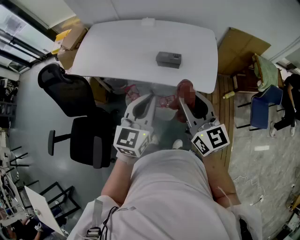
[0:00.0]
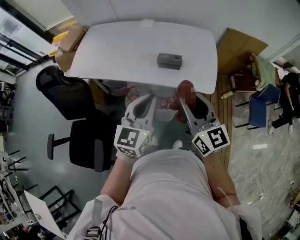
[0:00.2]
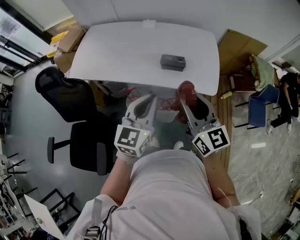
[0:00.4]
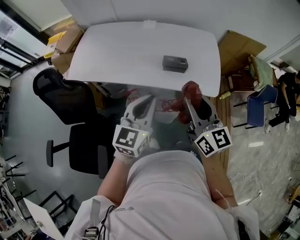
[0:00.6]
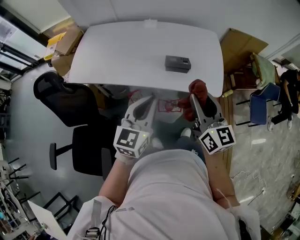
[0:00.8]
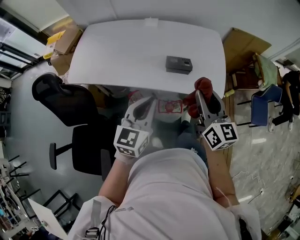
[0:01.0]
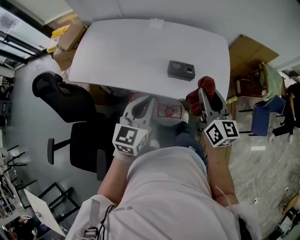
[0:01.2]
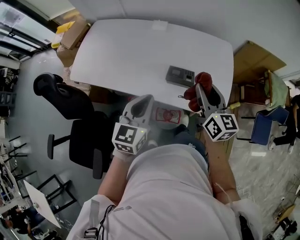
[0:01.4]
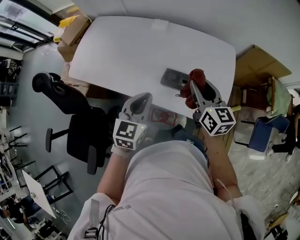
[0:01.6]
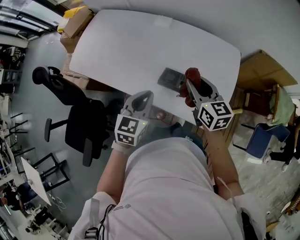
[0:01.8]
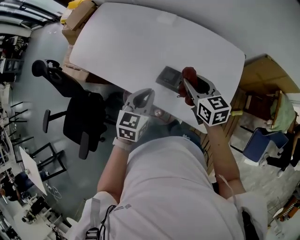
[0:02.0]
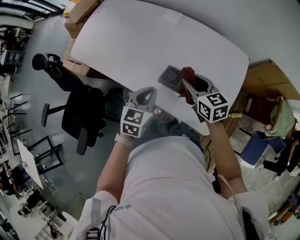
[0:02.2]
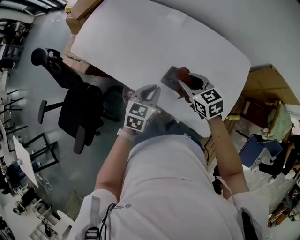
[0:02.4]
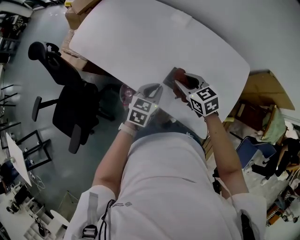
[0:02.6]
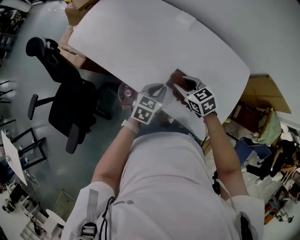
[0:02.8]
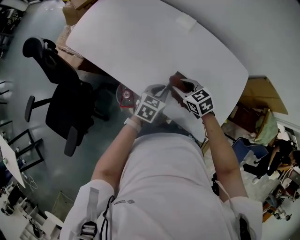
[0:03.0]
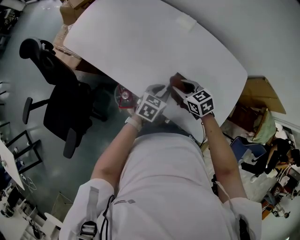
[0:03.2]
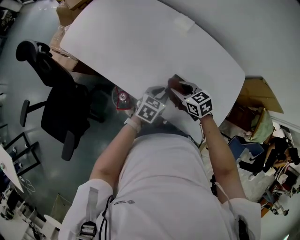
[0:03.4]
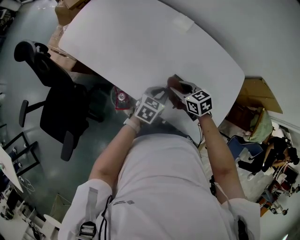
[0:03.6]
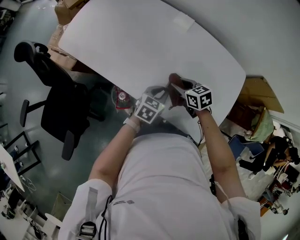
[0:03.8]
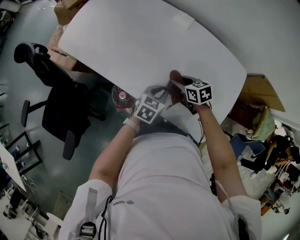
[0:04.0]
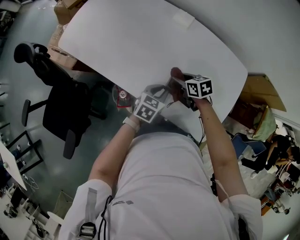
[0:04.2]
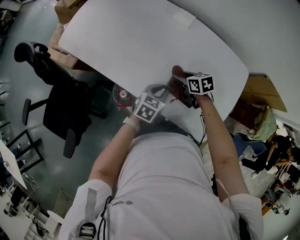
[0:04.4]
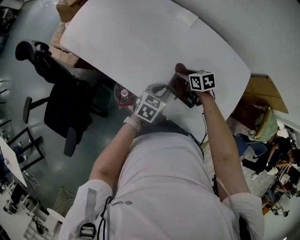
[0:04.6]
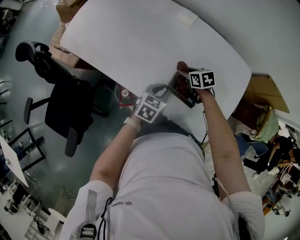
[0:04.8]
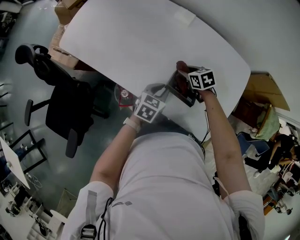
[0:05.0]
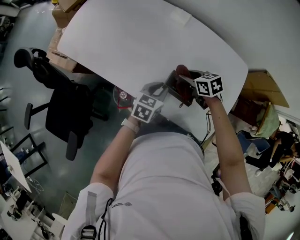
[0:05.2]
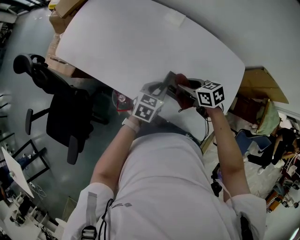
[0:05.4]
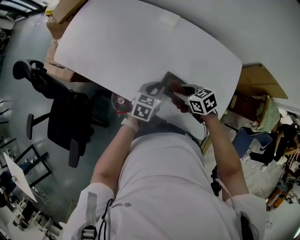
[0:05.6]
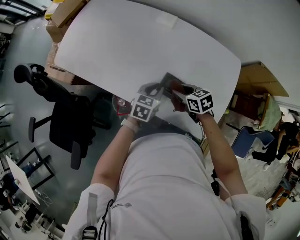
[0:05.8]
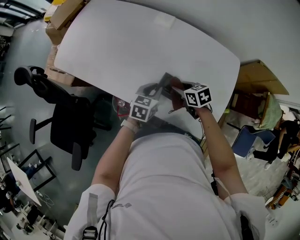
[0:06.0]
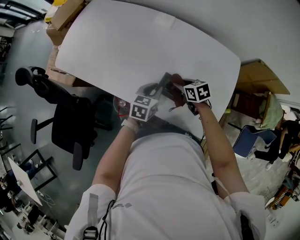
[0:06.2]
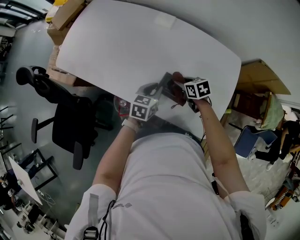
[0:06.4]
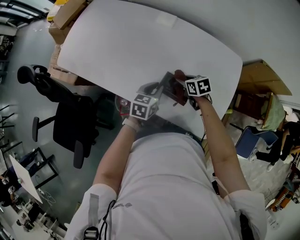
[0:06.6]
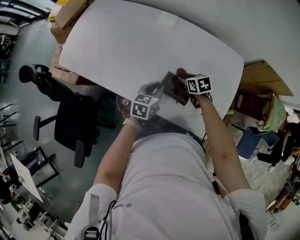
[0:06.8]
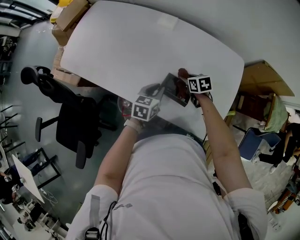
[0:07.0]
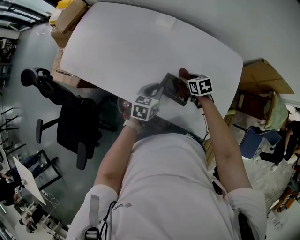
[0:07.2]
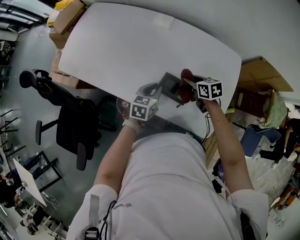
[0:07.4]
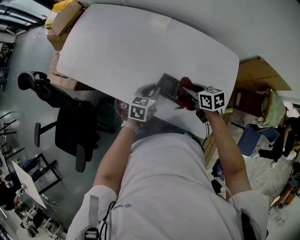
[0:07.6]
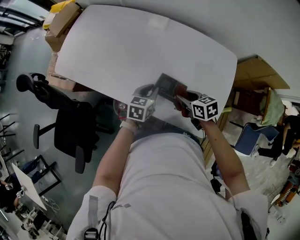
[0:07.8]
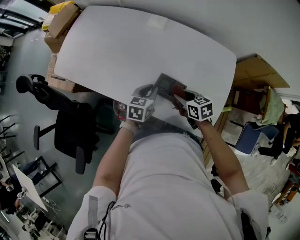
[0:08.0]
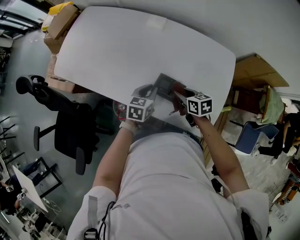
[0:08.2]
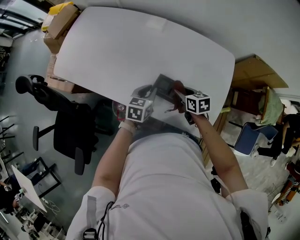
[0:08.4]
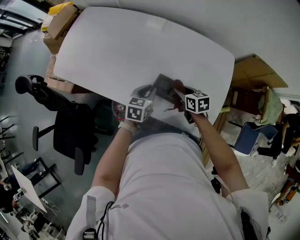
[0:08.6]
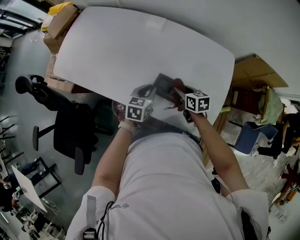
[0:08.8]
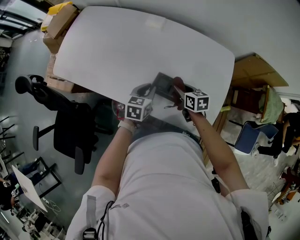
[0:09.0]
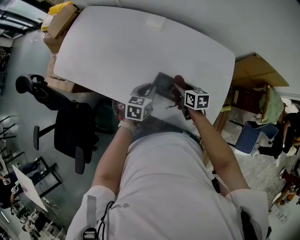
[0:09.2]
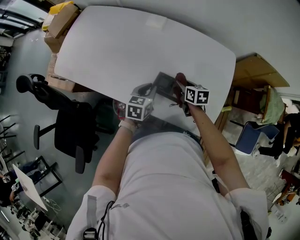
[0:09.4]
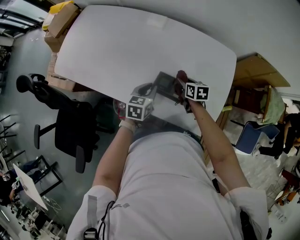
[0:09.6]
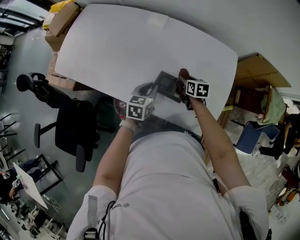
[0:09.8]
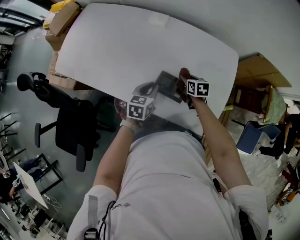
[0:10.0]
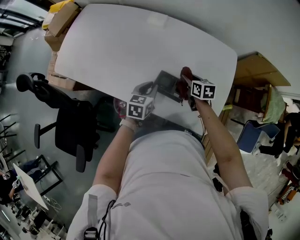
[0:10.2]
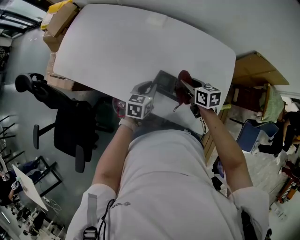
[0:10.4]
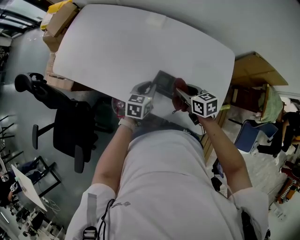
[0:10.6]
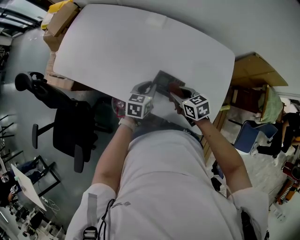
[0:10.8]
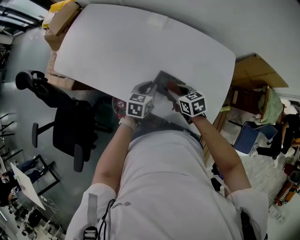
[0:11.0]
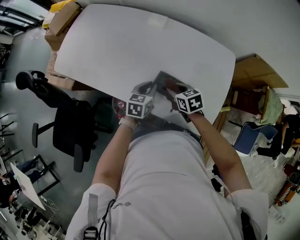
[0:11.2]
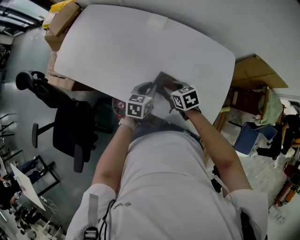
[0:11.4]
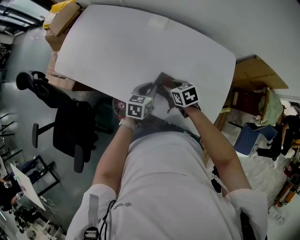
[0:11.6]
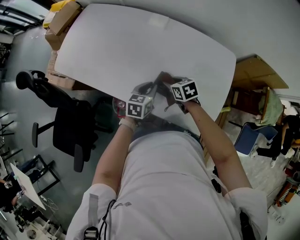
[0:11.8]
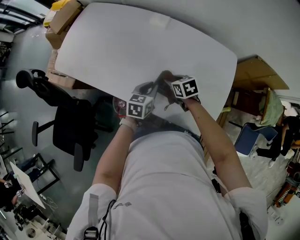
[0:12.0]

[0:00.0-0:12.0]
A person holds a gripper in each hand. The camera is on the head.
0:00.0 to 0:01.6: The right gripper heads forward, covering about 25 cm. The left gripper heads forward and downward, covering roughly 20 cm.
0:01.6 to 0:03.0: The left gripper is displaced downward by about 20 cm, and swivels some 20 degrees. Meanwhile the right gripper is displaced downward and to the left by about 20 cm, and tilts its fingers roughly 30 degrees downward.
0:03.0 to 0:04.4: The right gripper shifts about 10 cm downward and forward, and turns by approximately 30 degrees.
0:04.4 to 0:06.0: The right gripper travels backward by about 5 cm.
0:06.0 to 0:07.6: The right gripper ends up about 5 cm from where it was.
0:07.6 to 0:09.0: The grippers stay close to where they were, moving slightly.
0:10.4 to 0:12.0: The right gripper goes about 10 cm to the left.

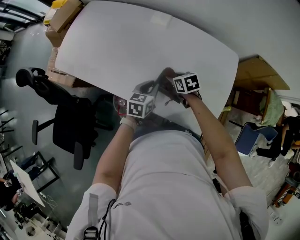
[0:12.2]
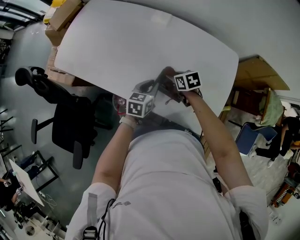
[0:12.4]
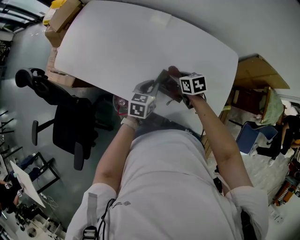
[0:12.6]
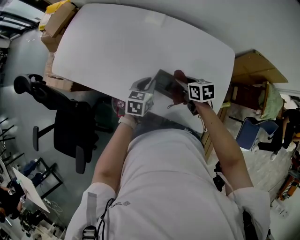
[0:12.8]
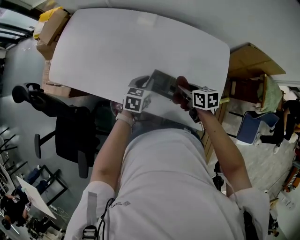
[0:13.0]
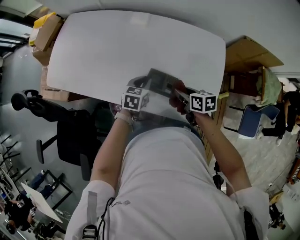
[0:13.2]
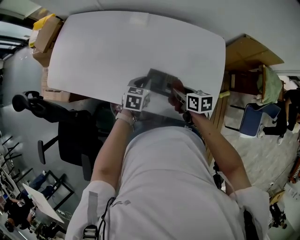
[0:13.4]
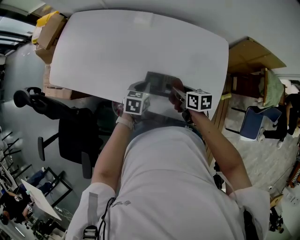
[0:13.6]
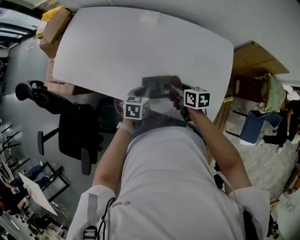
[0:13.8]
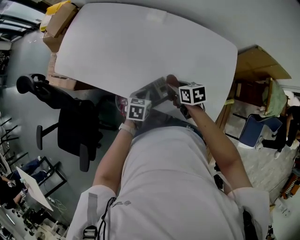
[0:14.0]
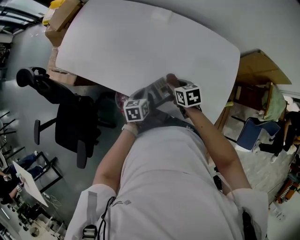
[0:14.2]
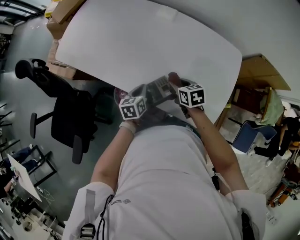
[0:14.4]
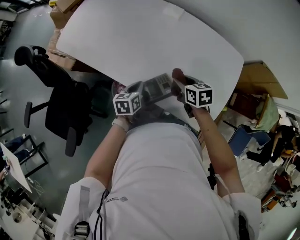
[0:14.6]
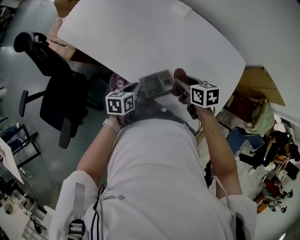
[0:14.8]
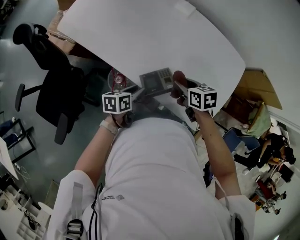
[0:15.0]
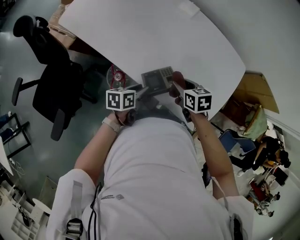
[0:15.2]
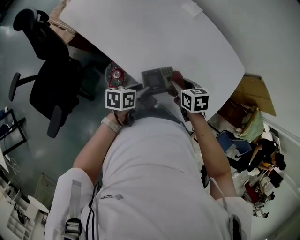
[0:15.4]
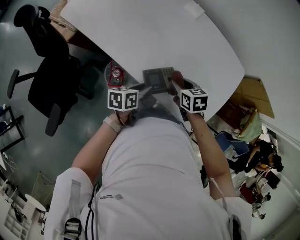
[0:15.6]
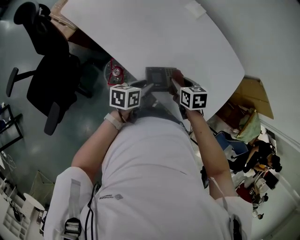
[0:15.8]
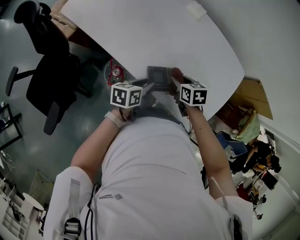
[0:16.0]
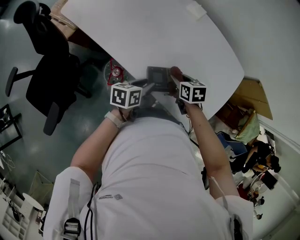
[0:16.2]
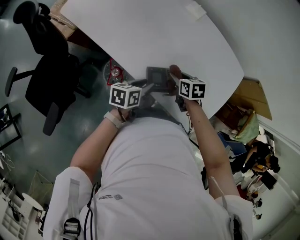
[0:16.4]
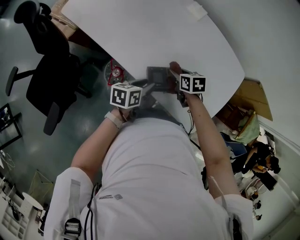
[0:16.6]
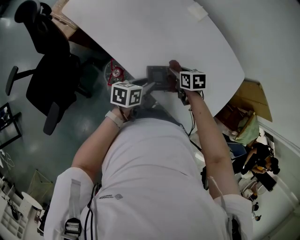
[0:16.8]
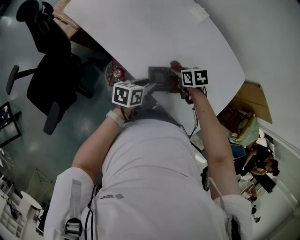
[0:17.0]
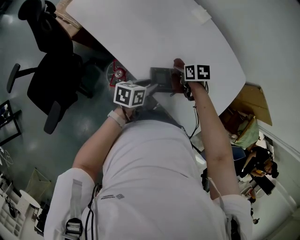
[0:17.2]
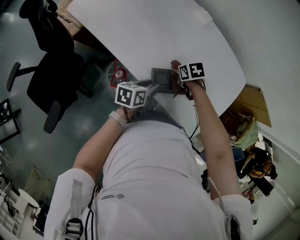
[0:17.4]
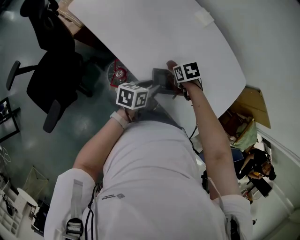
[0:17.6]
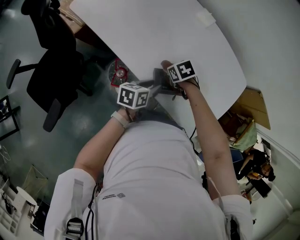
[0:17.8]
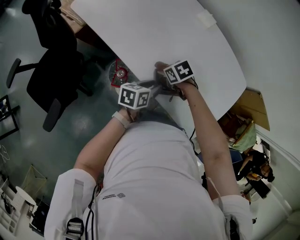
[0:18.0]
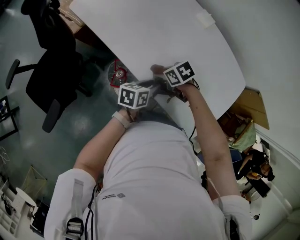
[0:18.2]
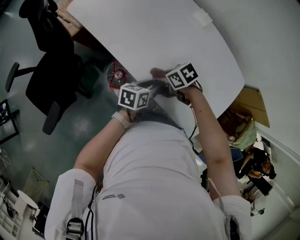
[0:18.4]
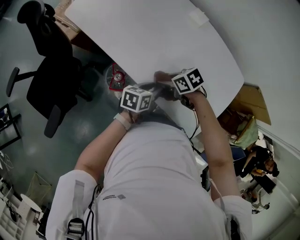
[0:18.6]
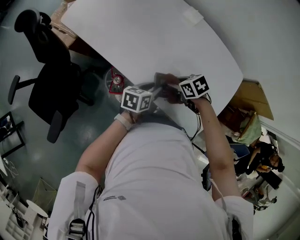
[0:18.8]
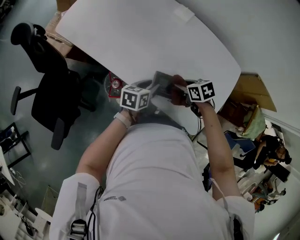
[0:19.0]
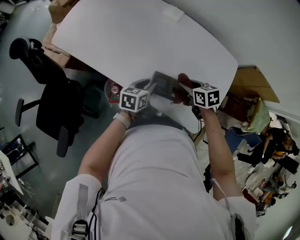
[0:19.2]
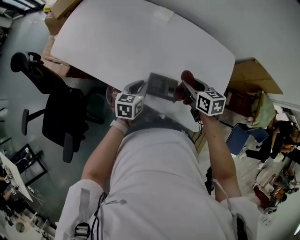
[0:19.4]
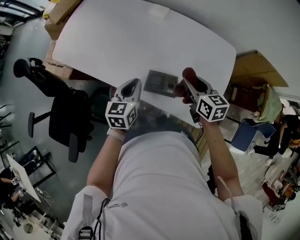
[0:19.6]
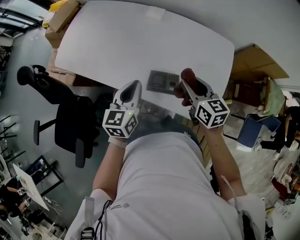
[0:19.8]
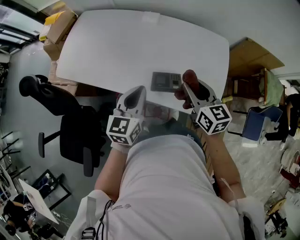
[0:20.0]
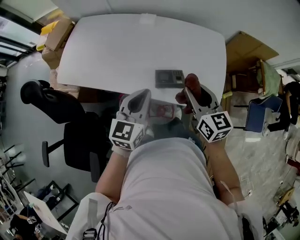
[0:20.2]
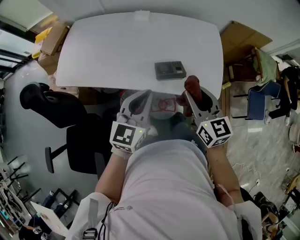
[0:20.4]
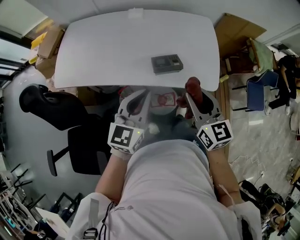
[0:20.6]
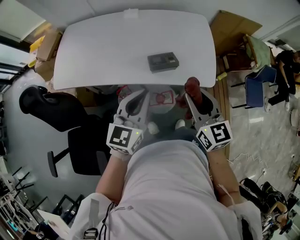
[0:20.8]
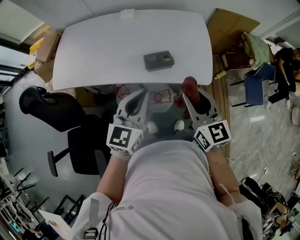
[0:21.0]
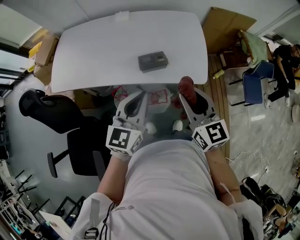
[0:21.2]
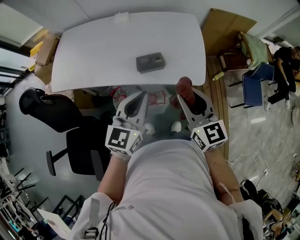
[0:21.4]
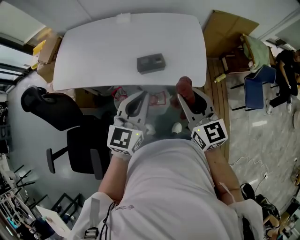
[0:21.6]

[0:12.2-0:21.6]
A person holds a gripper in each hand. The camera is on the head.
0:12.2 to 0:13.8: The right gripper goes some 5 cm backward, and turns by roughly 30 degrees.
0:13.8 to 0:15.4: The right gripper moves to the left, approximately 5 cm, and changes its angle by about 30 degrees. The left gripper is displaced backward by some 10 cm, changes its angle by approximately 40 degrees, and opens its fingers.
0:15.4 to 0:17.0: The right gripper heads forward and downward, covering some 10 cm.
0:17.0 to 0:18.4: The right gripper changes place by approximately 10 cm, and rotates some 30 degrees.
0:18.4 to 0:20.0: The two grippers go approximately 20 cm upward. The left gripper changes its angle by some 40 degrees, and closes up, while the right gripper tilts its fingers about 40 degrees upward.
0:20.0 to 0:21.6: The left gripper goes about 20 cm backward, to the right and upward, and changes its angle by roughly 20 degrees, while the right gripper goes some 20 cm backward.

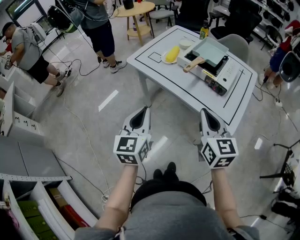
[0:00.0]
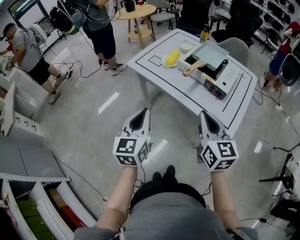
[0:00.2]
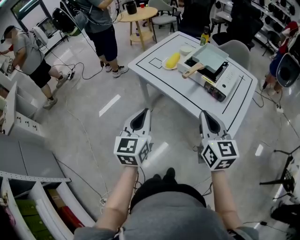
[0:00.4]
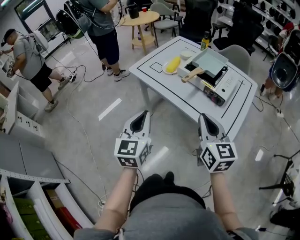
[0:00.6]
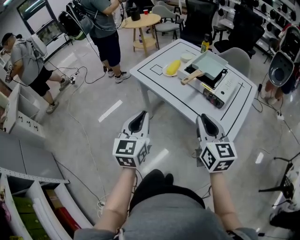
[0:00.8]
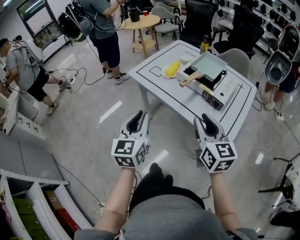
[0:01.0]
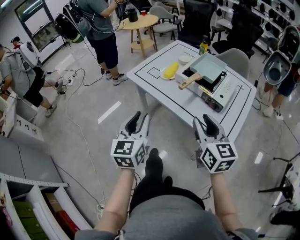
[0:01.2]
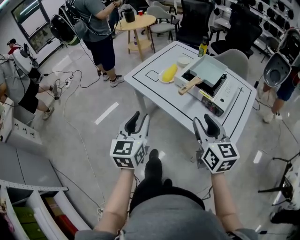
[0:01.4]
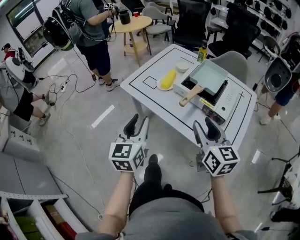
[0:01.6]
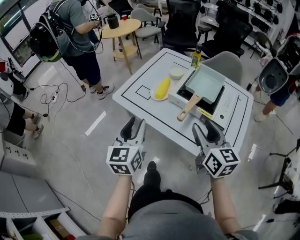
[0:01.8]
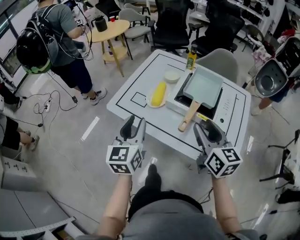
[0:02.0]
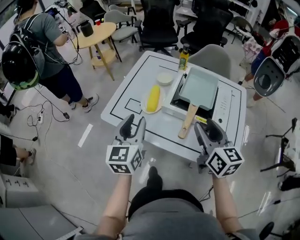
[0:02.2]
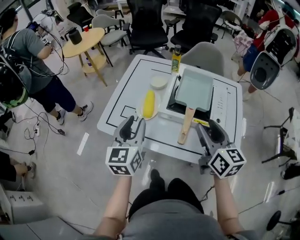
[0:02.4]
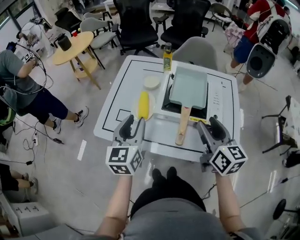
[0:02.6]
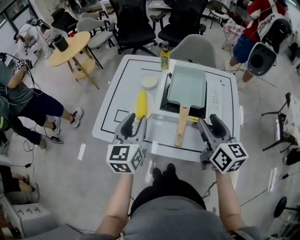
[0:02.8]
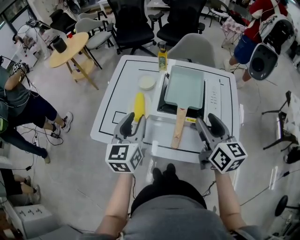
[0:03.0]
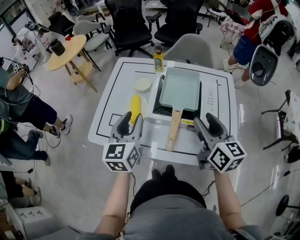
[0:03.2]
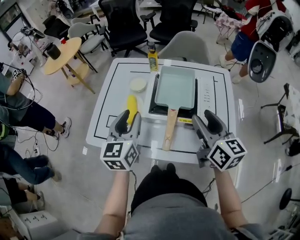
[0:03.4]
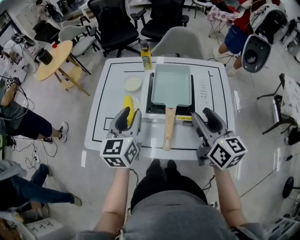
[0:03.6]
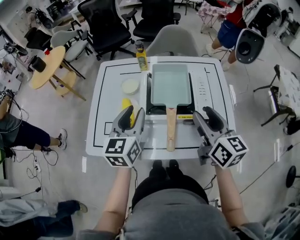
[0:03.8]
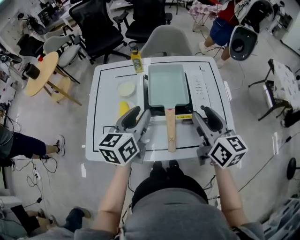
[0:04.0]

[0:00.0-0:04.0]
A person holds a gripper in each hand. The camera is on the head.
0:00.0 to 0:01.4: The grippers both shift forward by about 5 cm. The left gripper opens up. Meanwhile the right gripper opens.
0:01.4 to 0:02.6: The right gripper changes place by approximately 15 cm, and turns by approximately 30 degrees. Meanwhile the left gripper changes place by some 25 cm, and rotates roughly 30 degrees.
0:02.6 to 0:04.0: The left gripper goes some 10 cm to the right and forward, and changes its angle by roughly 30 degrees.
